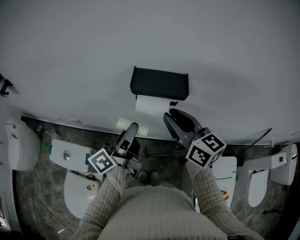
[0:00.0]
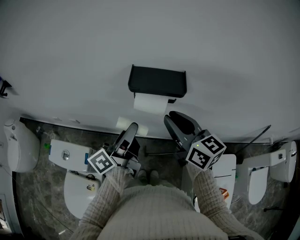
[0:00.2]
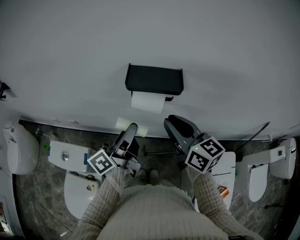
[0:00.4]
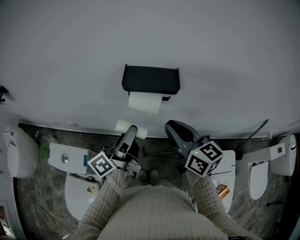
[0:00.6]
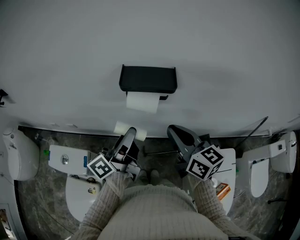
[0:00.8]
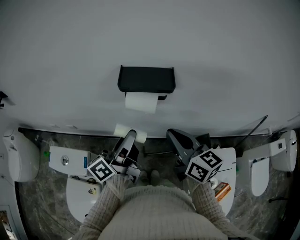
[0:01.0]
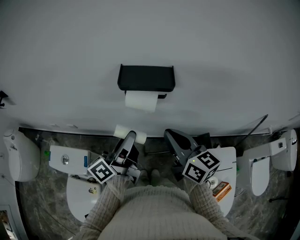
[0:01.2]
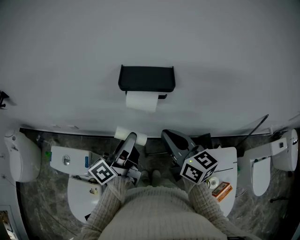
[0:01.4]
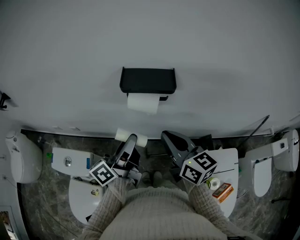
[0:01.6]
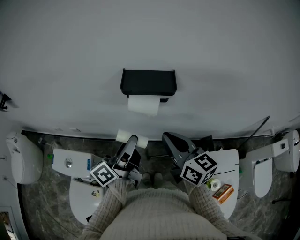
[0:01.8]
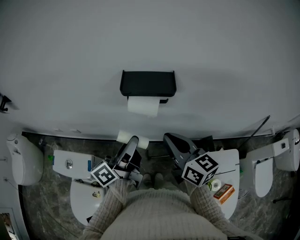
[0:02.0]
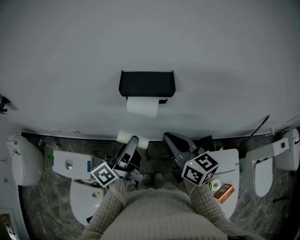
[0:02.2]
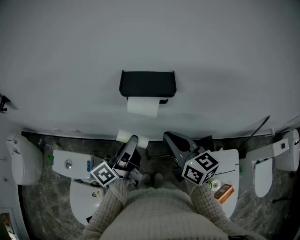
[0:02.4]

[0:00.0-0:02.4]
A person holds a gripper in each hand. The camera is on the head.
0.0 to 1.2 s: The right gripper is displaced backward by about 5 cm, and closes.
1.2 to 2.4 s: The grippers make only small movements.

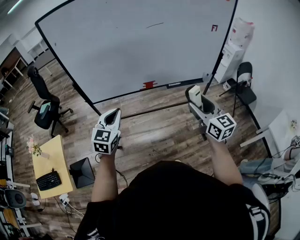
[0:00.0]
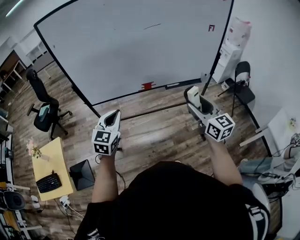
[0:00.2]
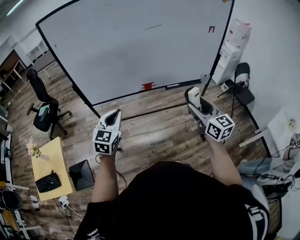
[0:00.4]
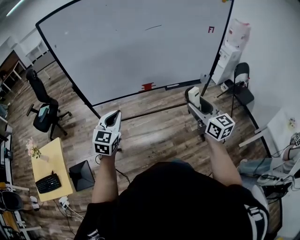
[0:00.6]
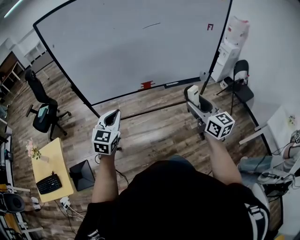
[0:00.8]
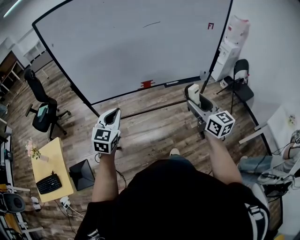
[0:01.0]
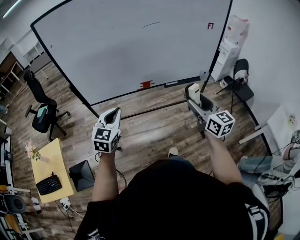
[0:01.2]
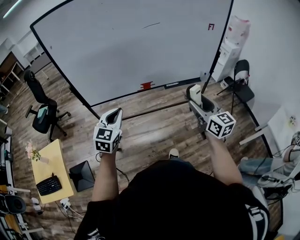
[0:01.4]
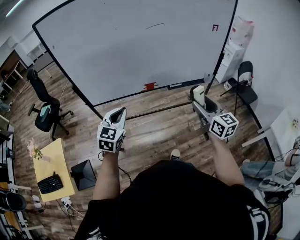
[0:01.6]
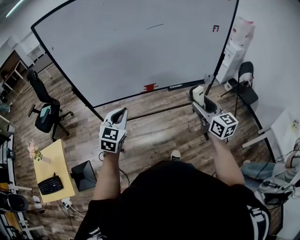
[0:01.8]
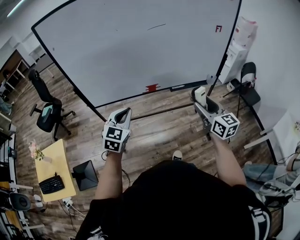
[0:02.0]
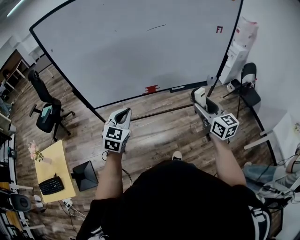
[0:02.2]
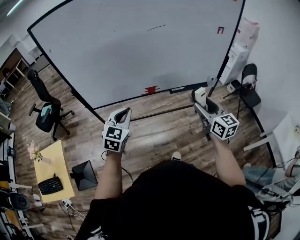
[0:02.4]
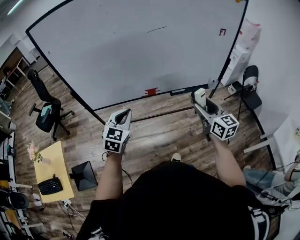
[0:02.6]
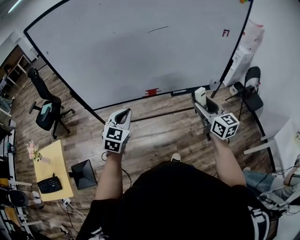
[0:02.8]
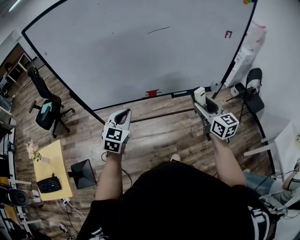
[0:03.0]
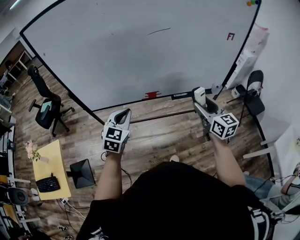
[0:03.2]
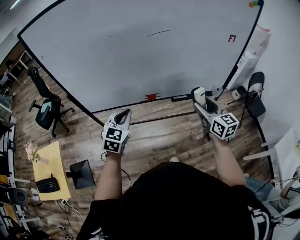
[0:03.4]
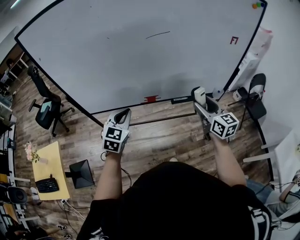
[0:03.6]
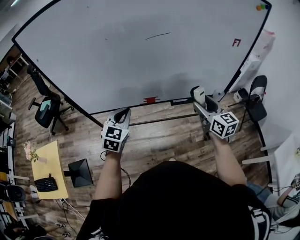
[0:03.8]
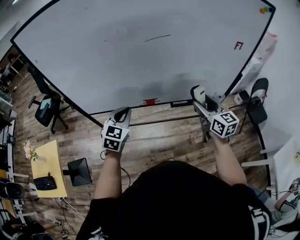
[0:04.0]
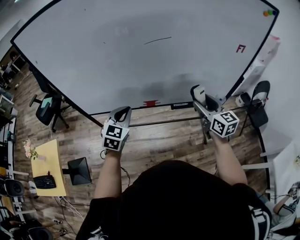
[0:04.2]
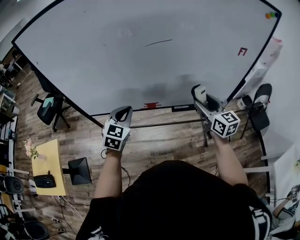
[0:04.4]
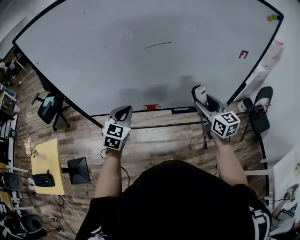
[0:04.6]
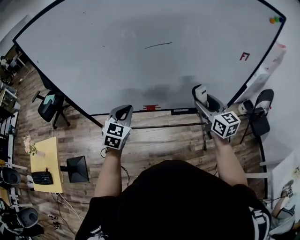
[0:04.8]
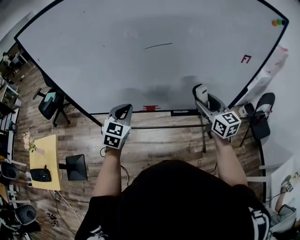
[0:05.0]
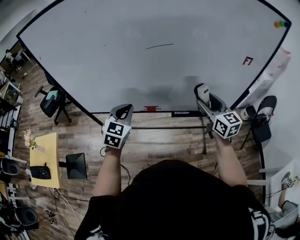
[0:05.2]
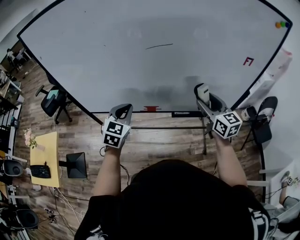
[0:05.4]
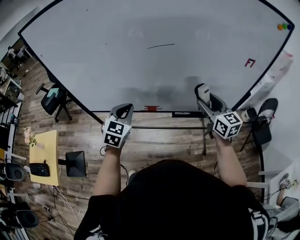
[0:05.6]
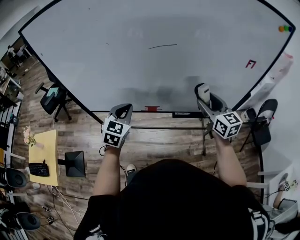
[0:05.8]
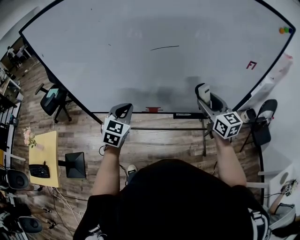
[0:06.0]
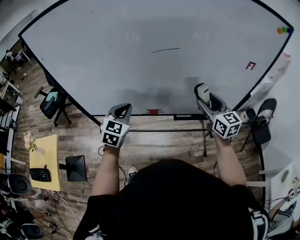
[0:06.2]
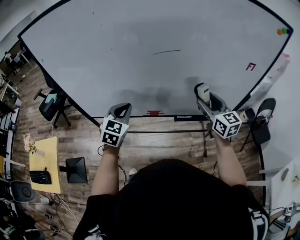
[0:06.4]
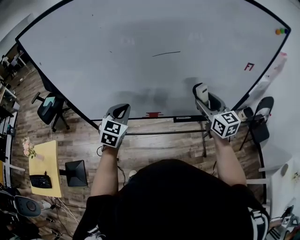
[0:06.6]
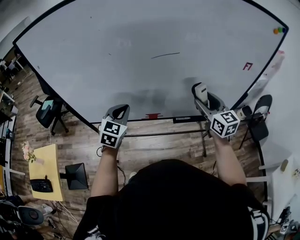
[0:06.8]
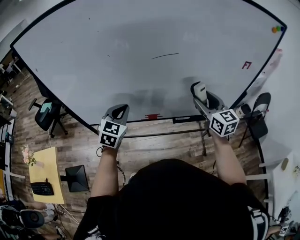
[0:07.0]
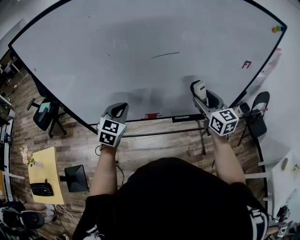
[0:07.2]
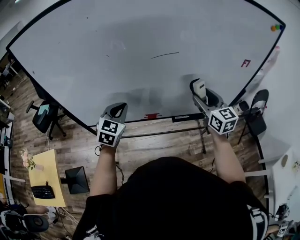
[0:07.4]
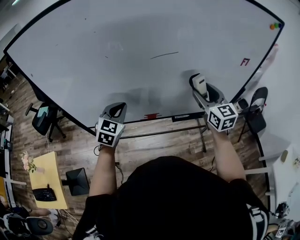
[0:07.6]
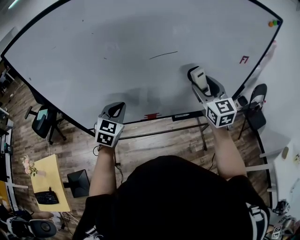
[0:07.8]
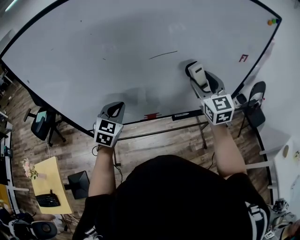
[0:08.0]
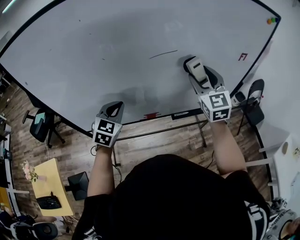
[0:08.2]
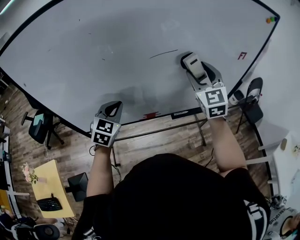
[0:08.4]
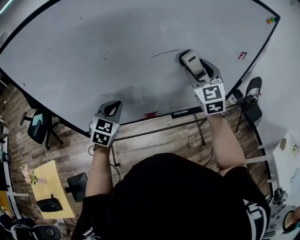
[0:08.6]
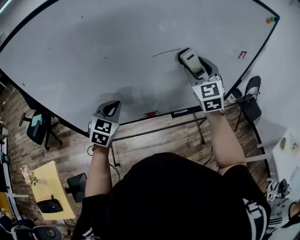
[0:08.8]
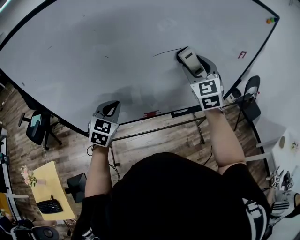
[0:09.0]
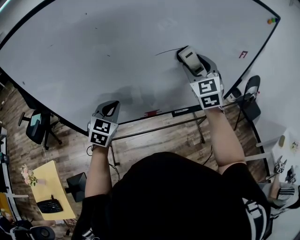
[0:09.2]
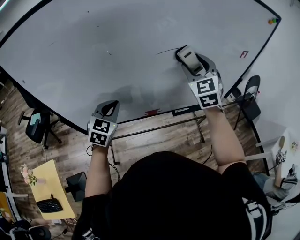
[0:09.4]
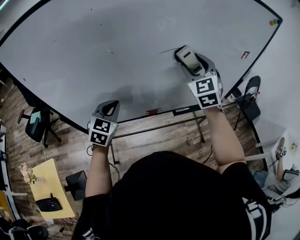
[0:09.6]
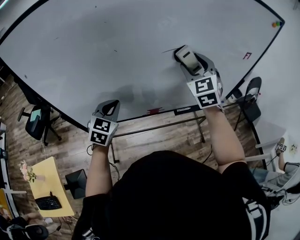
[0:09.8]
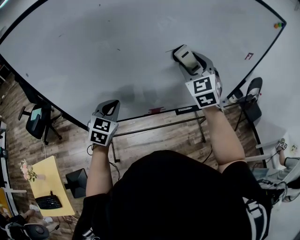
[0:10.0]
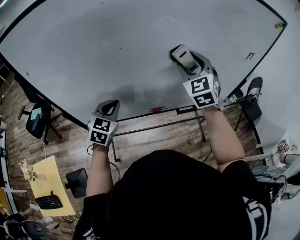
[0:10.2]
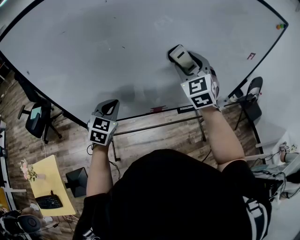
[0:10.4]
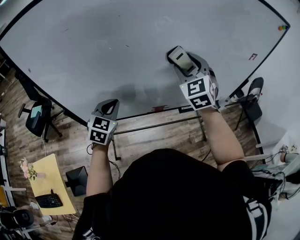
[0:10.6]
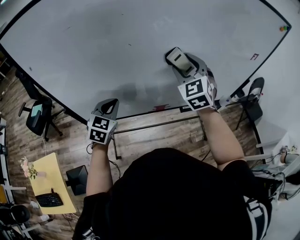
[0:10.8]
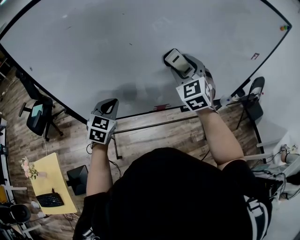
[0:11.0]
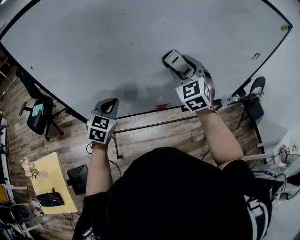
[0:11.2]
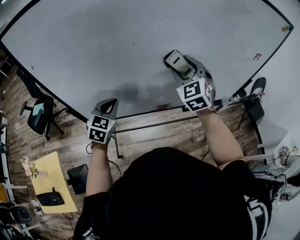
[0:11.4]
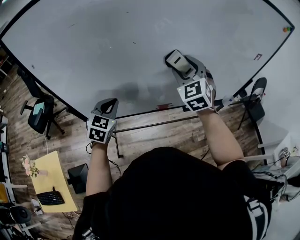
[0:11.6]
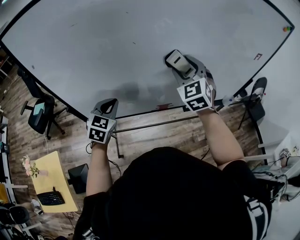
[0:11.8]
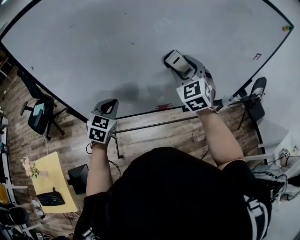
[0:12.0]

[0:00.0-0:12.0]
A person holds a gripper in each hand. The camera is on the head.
0.0 to 1.6 s: The grippers move only a little.
1.6 to 3.0 s: The two grippers go some 10 cm forward.
3.0 to 4.4 s: Both grippers travel together forward, roughly 15 cm.
4.4 to 6.0 s: The right gripper shifts about 5 cm forward.
6.0 to 7.6 s: The left gripper is displaced forward by approximately 5 cm. Meanwhile the right gripper moves roughly 5 cm.
7.6 to 9.0 s: The right gripper moves to the left and upward, about 10 cm, and turns by approximately 30 degrees.
9.0 to 10.4 s: The left gripper is displaced to the left by some 5 cm; the right gripper moves to the left, roughly 10 cm.
10.4 to 12.0 s: The right gripper ends up roughly 5 cm from where it was.

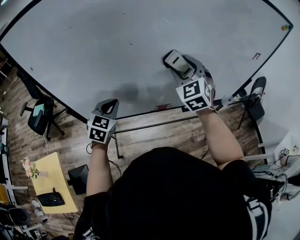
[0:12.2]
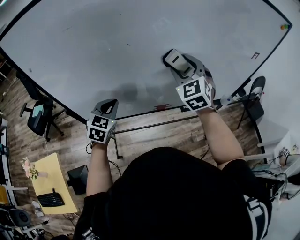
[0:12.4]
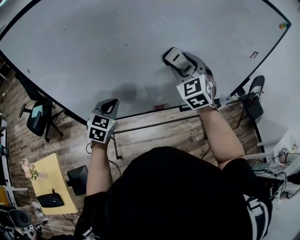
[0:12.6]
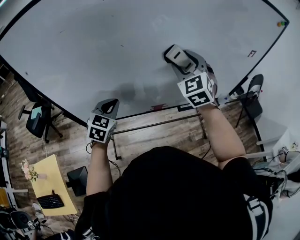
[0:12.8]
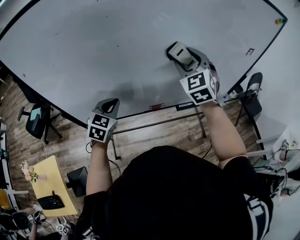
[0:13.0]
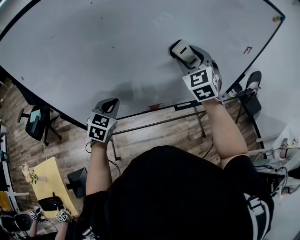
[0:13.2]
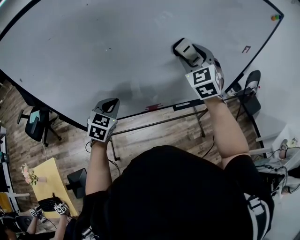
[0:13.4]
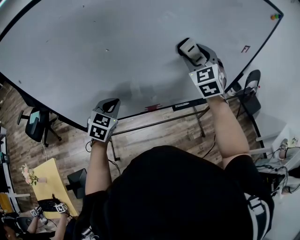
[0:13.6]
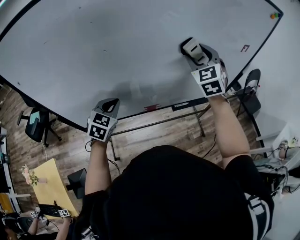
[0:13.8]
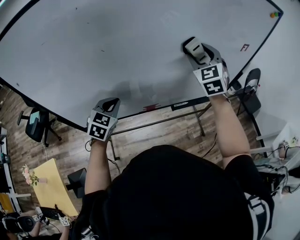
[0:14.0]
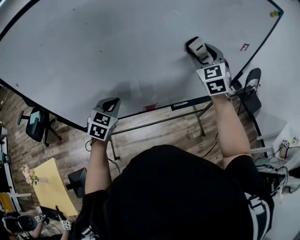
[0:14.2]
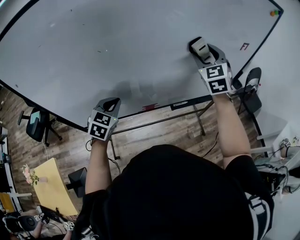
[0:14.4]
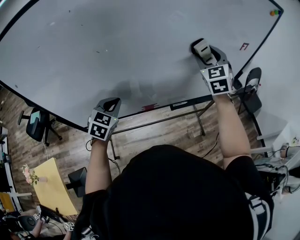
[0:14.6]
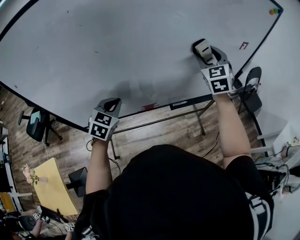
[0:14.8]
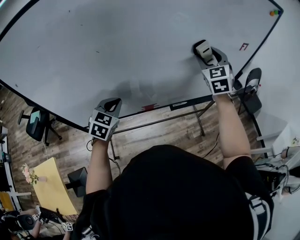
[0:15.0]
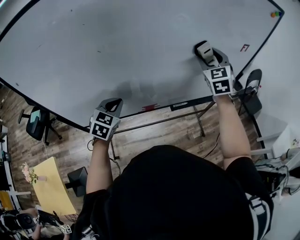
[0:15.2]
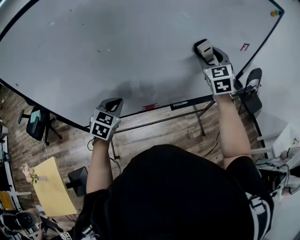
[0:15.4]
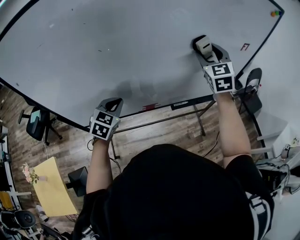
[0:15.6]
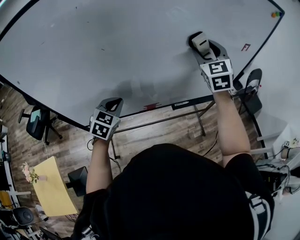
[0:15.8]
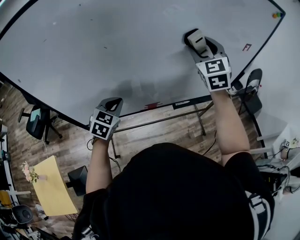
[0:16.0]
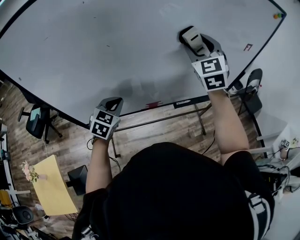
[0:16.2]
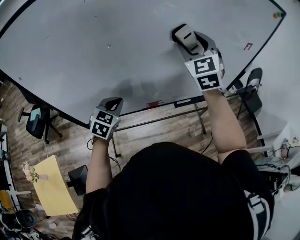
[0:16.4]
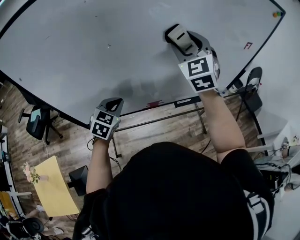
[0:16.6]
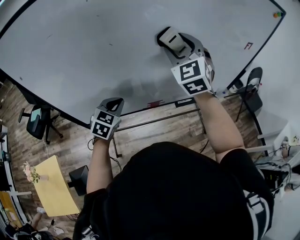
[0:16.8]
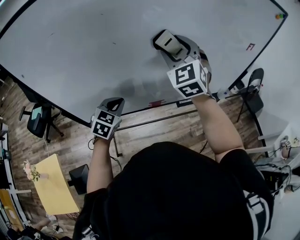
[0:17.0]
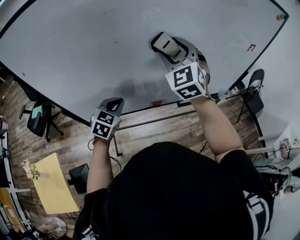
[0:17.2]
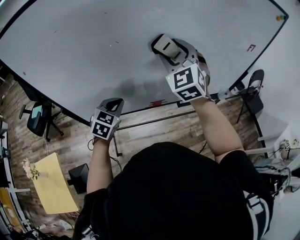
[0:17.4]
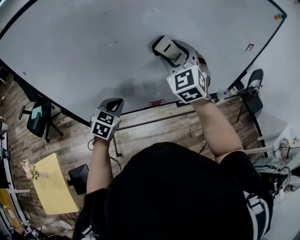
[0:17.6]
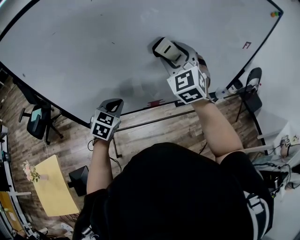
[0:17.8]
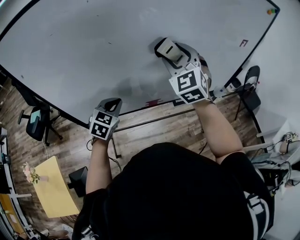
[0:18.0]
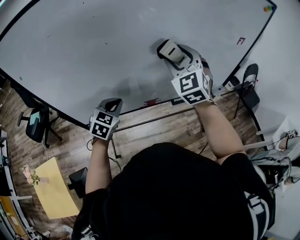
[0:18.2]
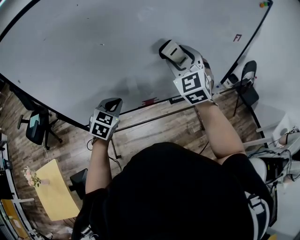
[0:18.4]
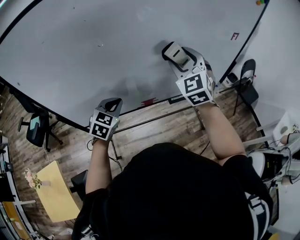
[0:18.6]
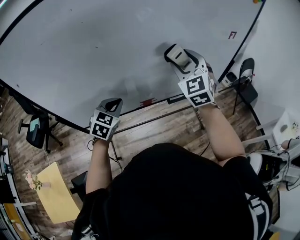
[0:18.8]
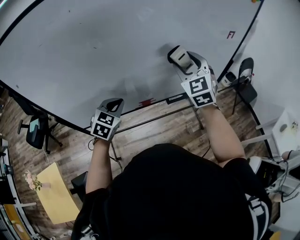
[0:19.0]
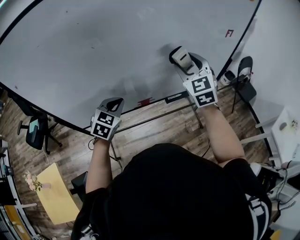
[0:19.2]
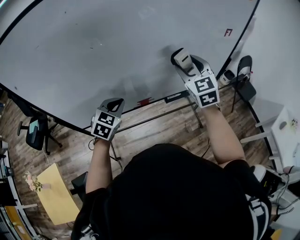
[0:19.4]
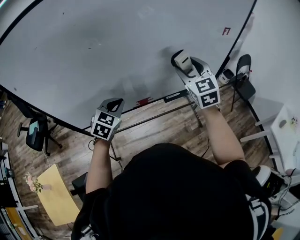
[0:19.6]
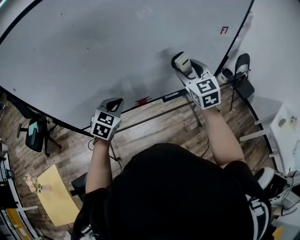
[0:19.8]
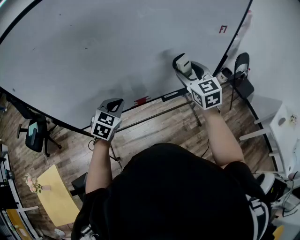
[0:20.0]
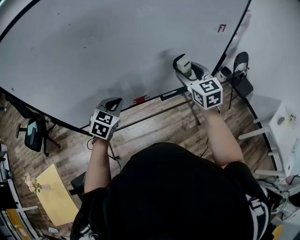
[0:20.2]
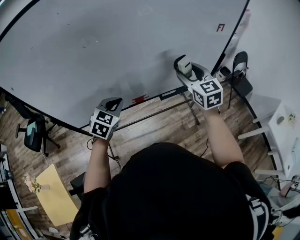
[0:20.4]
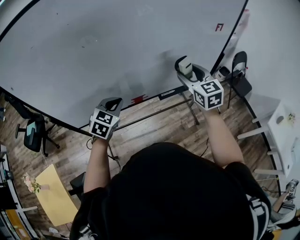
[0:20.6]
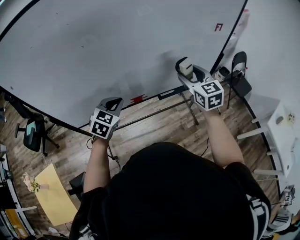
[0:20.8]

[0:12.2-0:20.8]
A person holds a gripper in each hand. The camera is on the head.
12.2 to 13.6 s: The right gripper shifts about 10 cm to the right, while the left gripper is displaced to the right by some 5 cm.
13.6 to 15.0 s: The right gripper travels to the right by roughly 10 cm.
15.0 to 16.6 s: The right gripper is displaced to the left and upward by approximately 15 cm.
16.6 to 18.0 s: The right gripper changes place by roughly 5 cm.
18.0 to 19.4 s: The right gripper goes some 15 cm to the right. Meanwhile the left gripper travels to the right by approximately 5 cm.
19.4 to 20.8 s: The right gripper goes roughly 5 cm to the right.

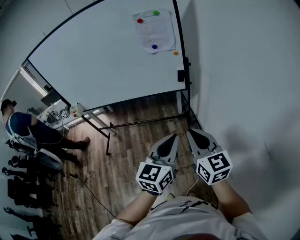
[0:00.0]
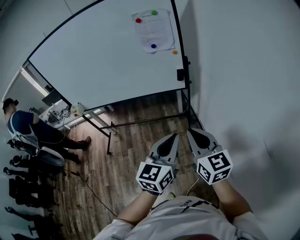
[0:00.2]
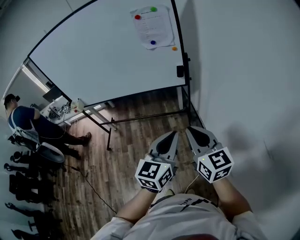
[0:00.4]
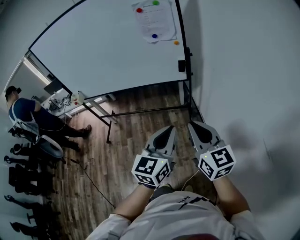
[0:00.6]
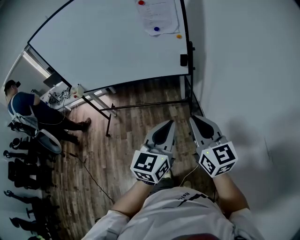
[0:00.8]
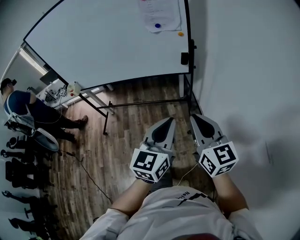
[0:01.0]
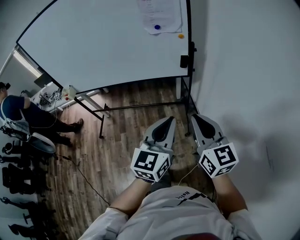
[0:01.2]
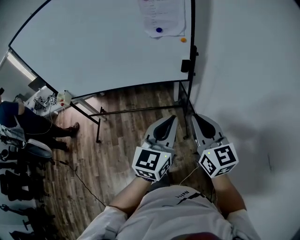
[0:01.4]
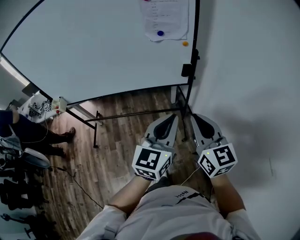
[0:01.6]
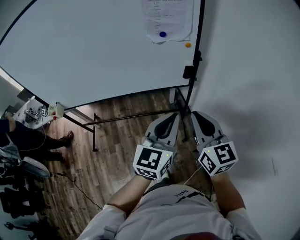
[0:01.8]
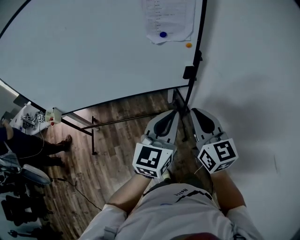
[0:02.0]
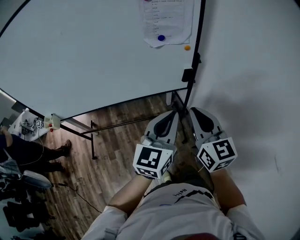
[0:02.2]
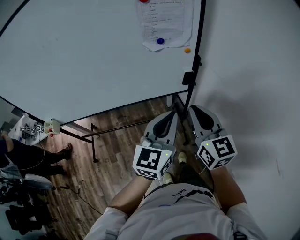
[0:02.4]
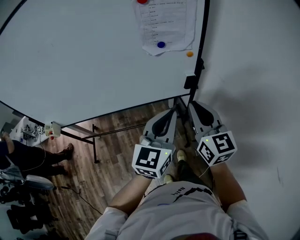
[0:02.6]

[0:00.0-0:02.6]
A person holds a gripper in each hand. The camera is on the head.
0.0 to 1.2 s: The two grippers go approximately 5 cm forward.
1.2 to 2.6 s: The grippers both shift forward by approximately 25 cm.
